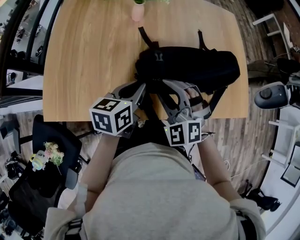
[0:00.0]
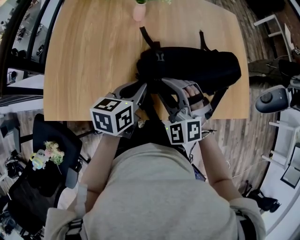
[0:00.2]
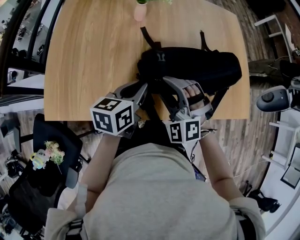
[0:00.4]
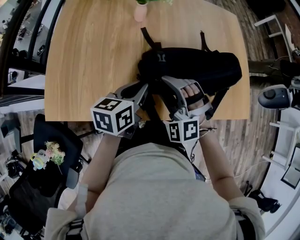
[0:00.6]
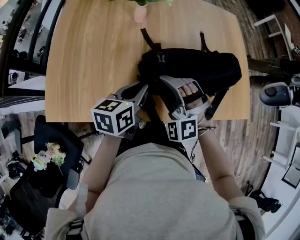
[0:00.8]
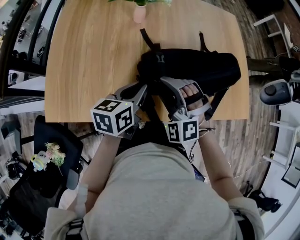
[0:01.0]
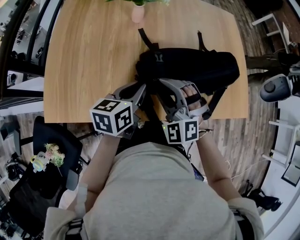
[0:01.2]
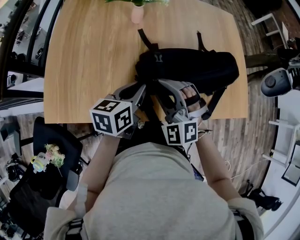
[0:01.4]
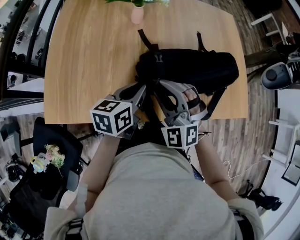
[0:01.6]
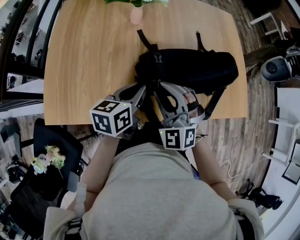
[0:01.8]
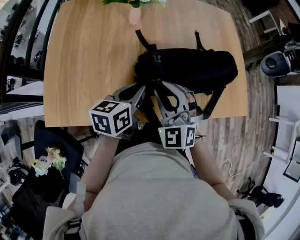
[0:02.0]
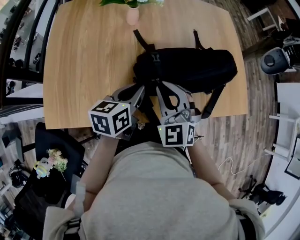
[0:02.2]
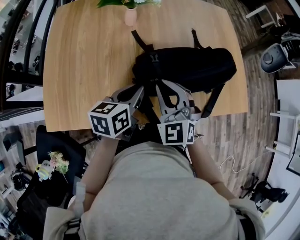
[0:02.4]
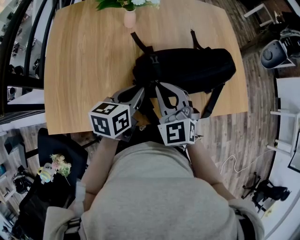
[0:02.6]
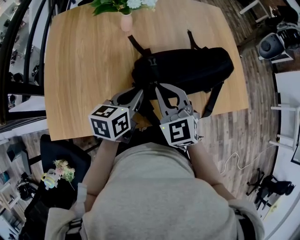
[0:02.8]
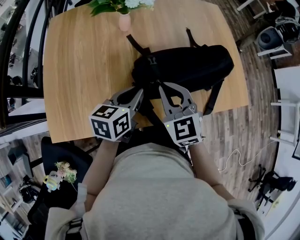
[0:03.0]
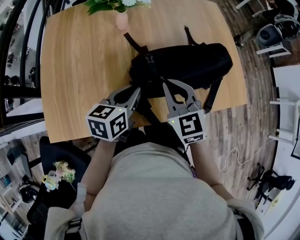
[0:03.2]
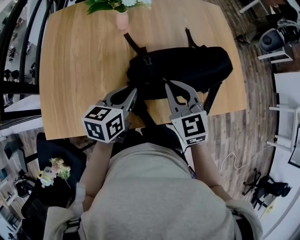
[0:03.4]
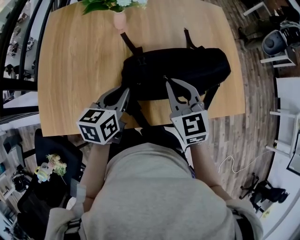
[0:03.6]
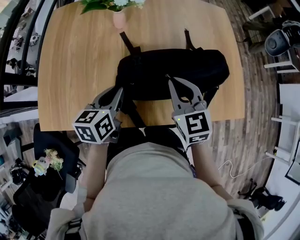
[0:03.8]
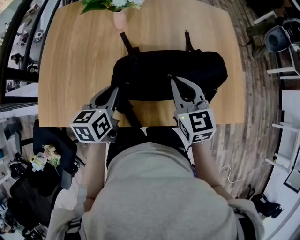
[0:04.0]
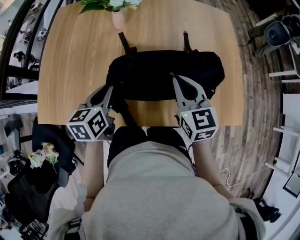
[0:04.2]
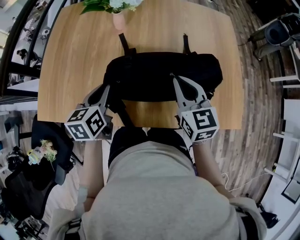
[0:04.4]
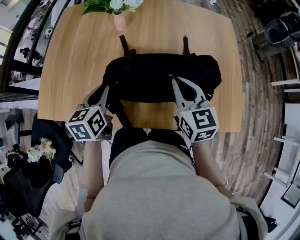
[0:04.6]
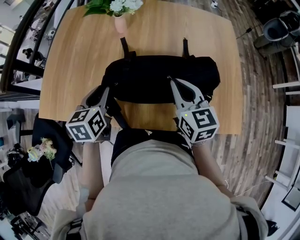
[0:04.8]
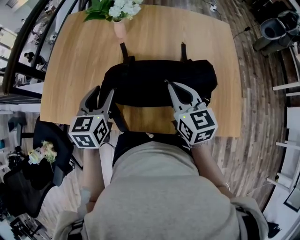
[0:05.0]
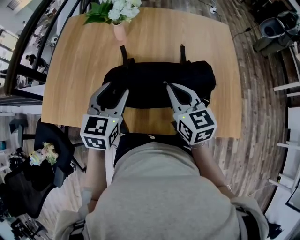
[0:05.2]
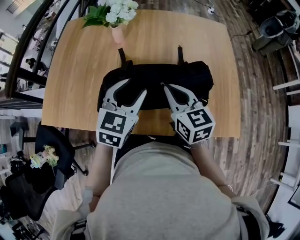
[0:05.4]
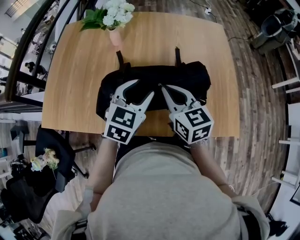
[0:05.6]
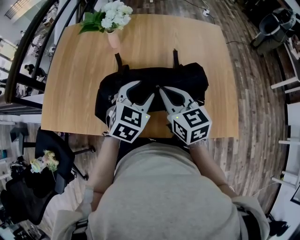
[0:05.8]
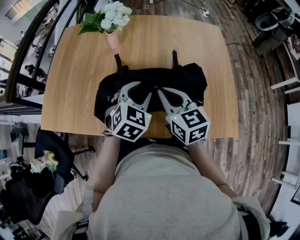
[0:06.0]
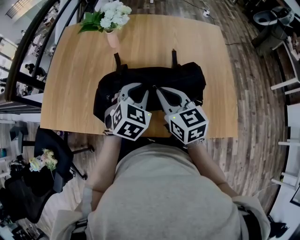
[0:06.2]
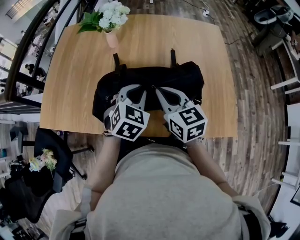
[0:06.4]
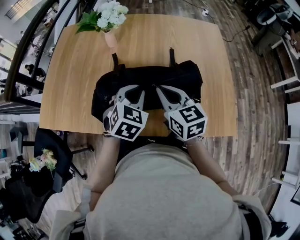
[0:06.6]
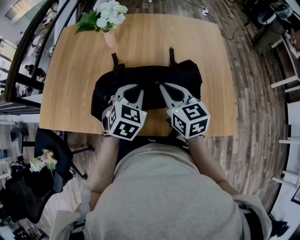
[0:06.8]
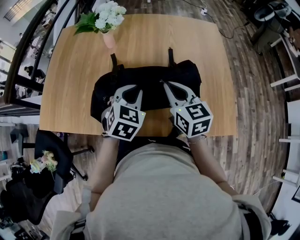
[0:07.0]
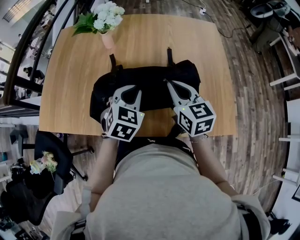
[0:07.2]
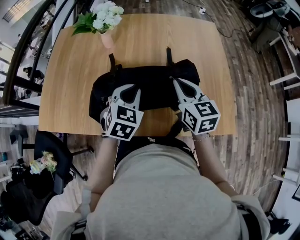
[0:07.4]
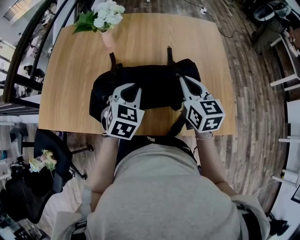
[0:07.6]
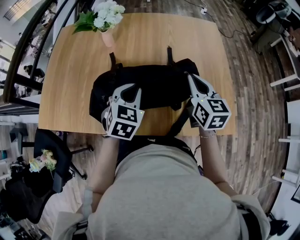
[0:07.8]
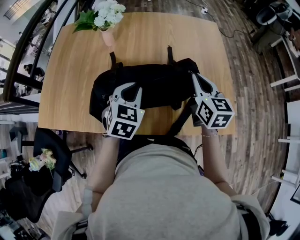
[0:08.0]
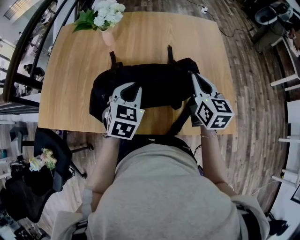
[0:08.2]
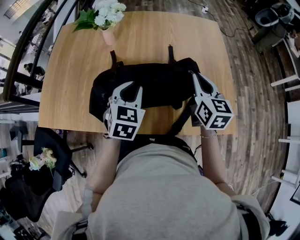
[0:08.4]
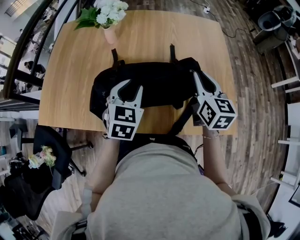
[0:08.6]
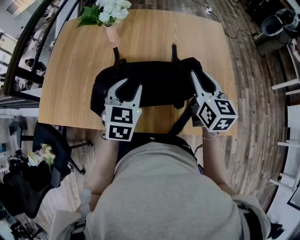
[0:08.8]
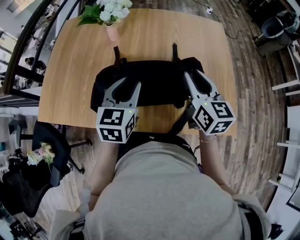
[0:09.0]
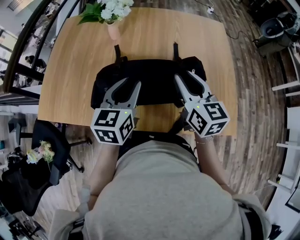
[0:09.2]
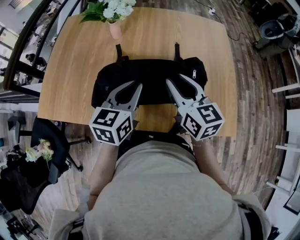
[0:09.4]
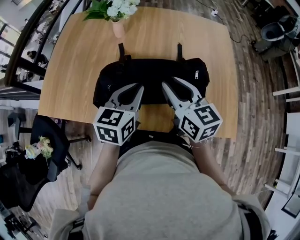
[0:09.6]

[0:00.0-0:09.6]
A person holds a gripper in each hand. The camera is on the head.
0:00.0 to 0:01.6: There are only small adjustments of the grippers.
0:01.6 to 0:03.2: The right gripper rolls clockwise, seen from behind, by approximately 40 degrees, and closes its fingers.
0:03.2 to 0:04.8: The left gripper swivels approximately 40 degrees, while the right gripper changes place by approximately 15 cm, and rotates about 20 degrees.
0:04.8 to 0:06.4: The left gripper heads to the right, covering about 20 cm, rolls clockwise, seen from behind, by about 40 degrees, and opens and closes again.
0:06.4 to 0:08.0: The right gripper goes about 15 cm to the right, and changes its angle by some 20 degrees.
0:08.0 to 0:09.6: The left gripper moves roughly 5 cm, changes its angle by about 30 degrees, and opens and closes again. The right gripper is displaced to the left by roughly 15 cm, rotates roughly 20 degrees, and opens.

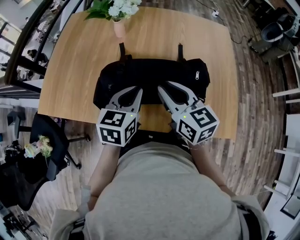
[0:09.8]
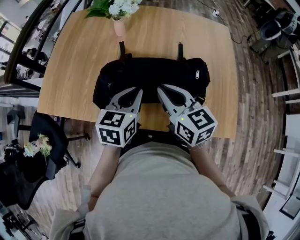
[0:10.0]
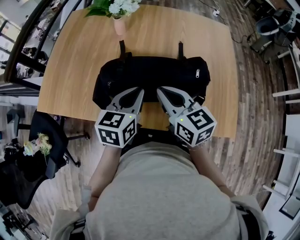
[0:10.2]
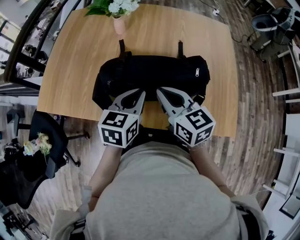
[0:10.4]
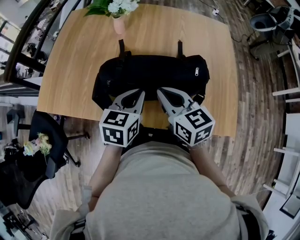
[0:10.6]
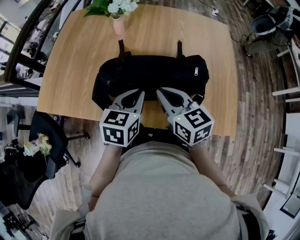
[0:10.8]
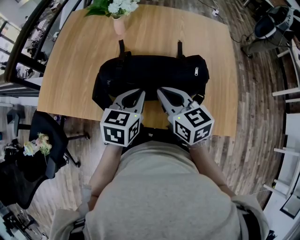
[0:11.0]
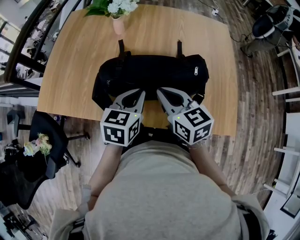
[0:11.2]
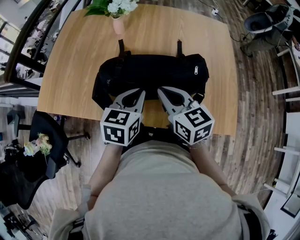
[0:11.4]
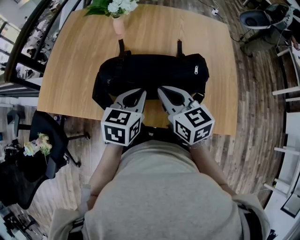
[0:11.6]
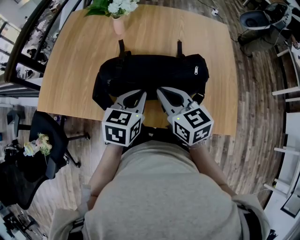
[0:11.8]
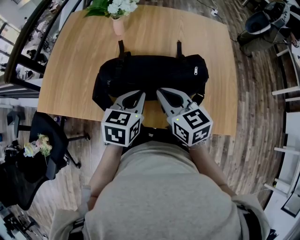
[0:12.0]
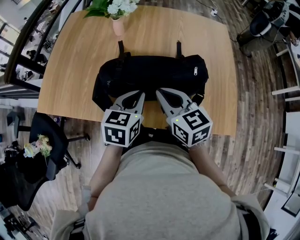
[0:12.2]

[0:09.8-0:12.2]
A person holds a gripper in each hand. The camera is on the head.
0:09.8 to 0:11.0: The right gripper closes.
0:11.0 to 0:12.2: Both grippers stay put.

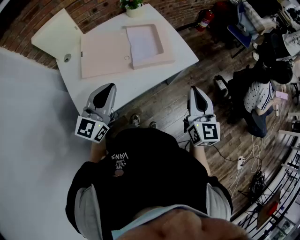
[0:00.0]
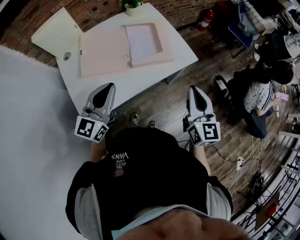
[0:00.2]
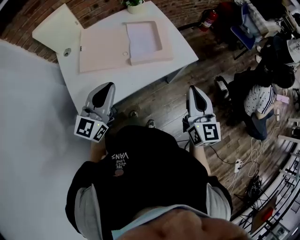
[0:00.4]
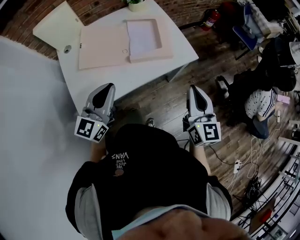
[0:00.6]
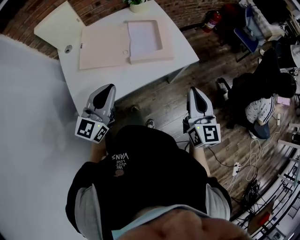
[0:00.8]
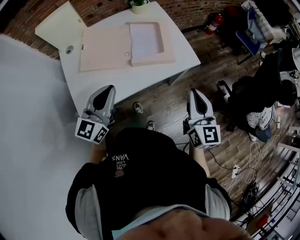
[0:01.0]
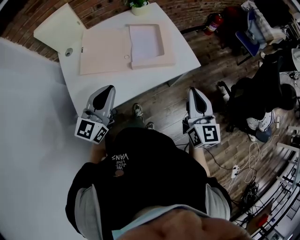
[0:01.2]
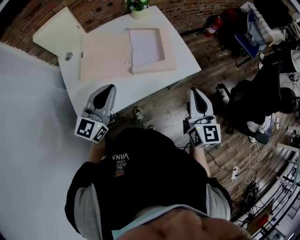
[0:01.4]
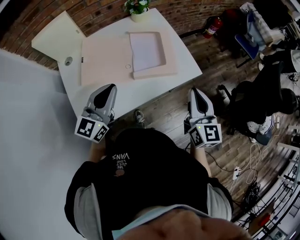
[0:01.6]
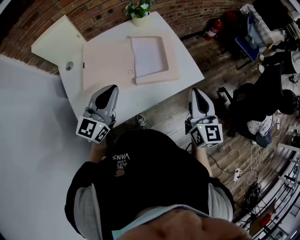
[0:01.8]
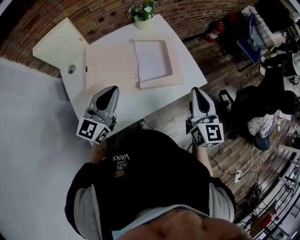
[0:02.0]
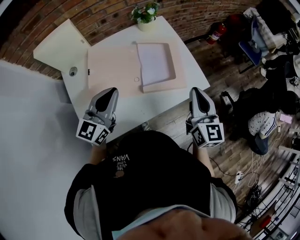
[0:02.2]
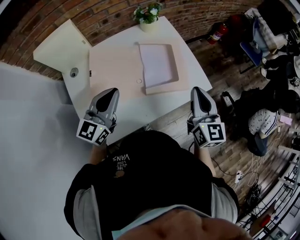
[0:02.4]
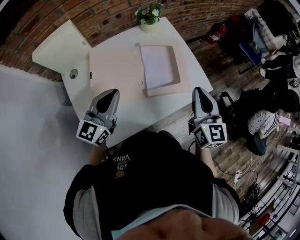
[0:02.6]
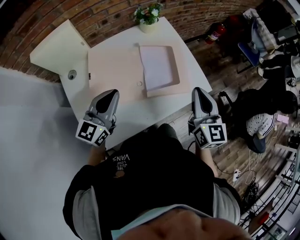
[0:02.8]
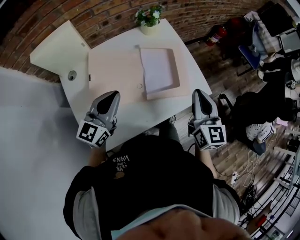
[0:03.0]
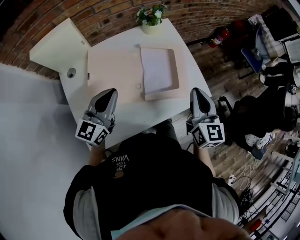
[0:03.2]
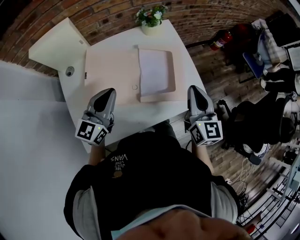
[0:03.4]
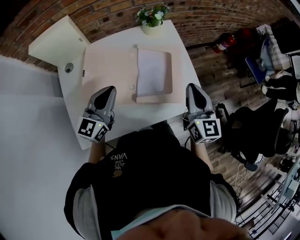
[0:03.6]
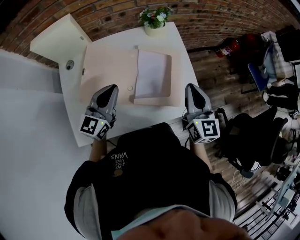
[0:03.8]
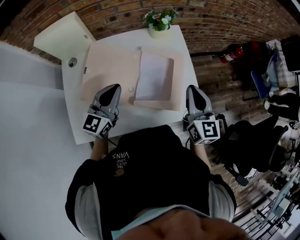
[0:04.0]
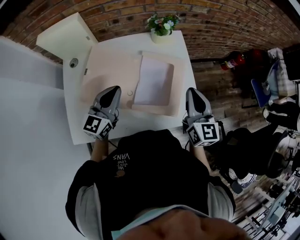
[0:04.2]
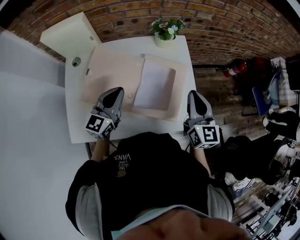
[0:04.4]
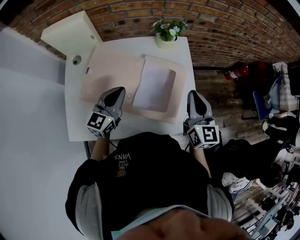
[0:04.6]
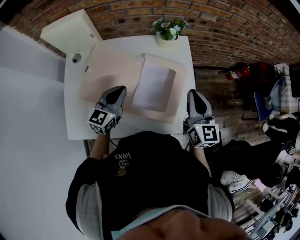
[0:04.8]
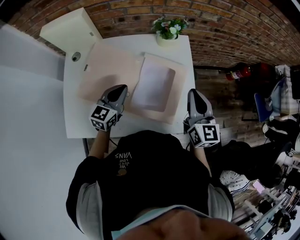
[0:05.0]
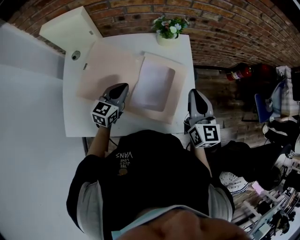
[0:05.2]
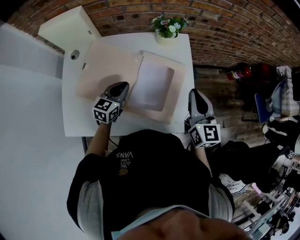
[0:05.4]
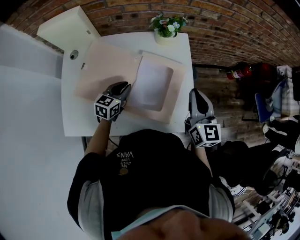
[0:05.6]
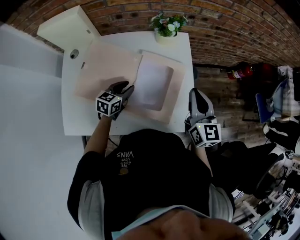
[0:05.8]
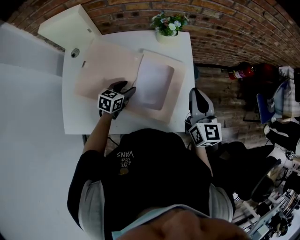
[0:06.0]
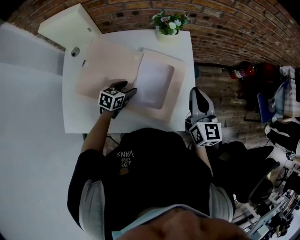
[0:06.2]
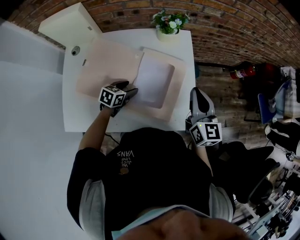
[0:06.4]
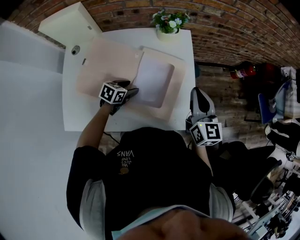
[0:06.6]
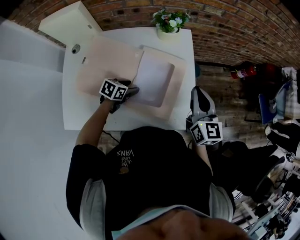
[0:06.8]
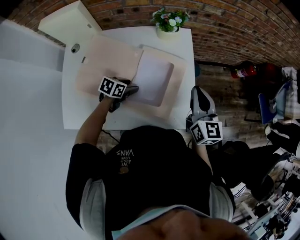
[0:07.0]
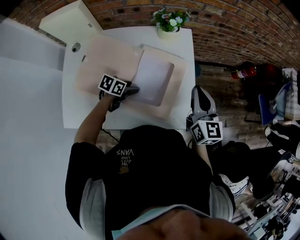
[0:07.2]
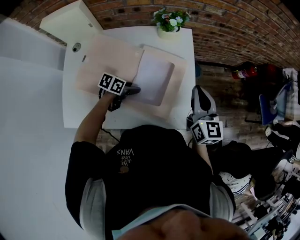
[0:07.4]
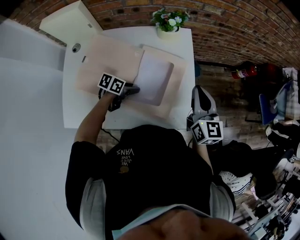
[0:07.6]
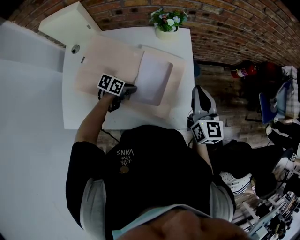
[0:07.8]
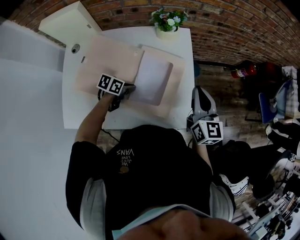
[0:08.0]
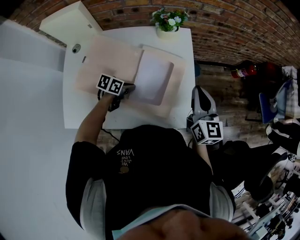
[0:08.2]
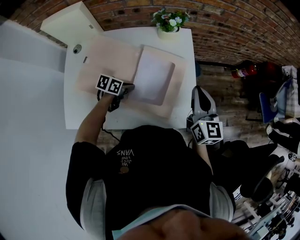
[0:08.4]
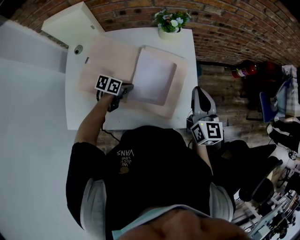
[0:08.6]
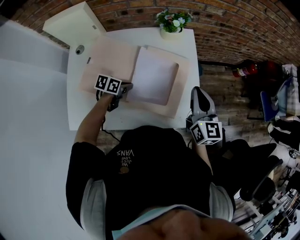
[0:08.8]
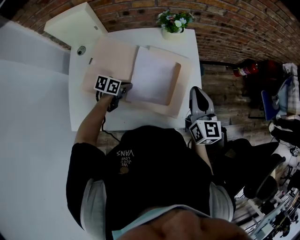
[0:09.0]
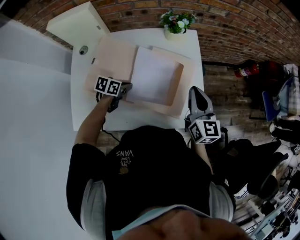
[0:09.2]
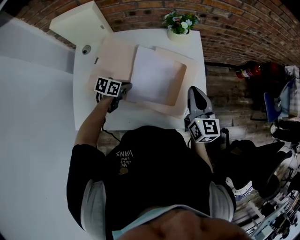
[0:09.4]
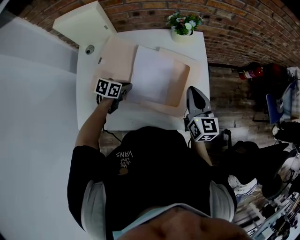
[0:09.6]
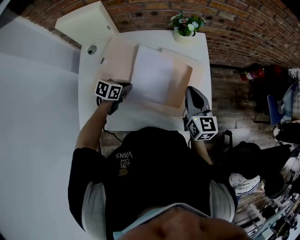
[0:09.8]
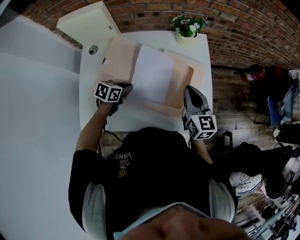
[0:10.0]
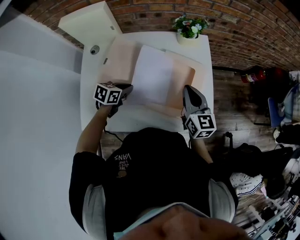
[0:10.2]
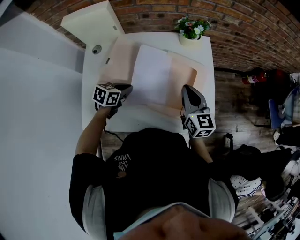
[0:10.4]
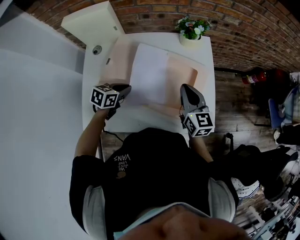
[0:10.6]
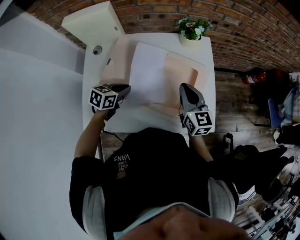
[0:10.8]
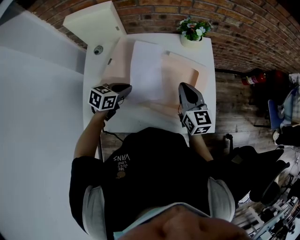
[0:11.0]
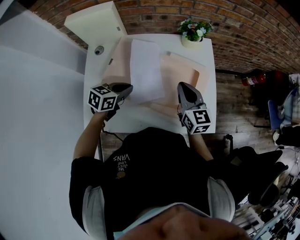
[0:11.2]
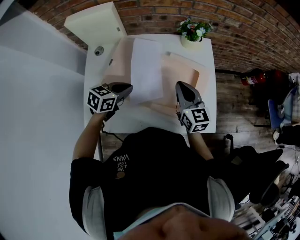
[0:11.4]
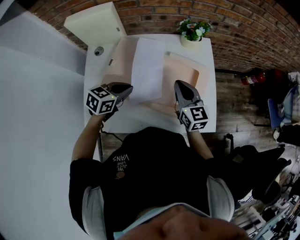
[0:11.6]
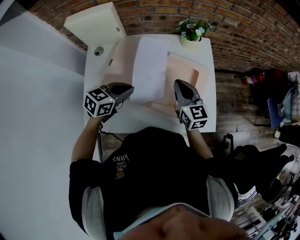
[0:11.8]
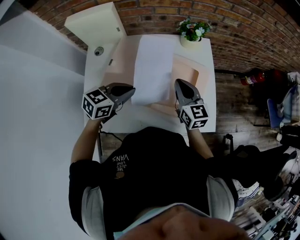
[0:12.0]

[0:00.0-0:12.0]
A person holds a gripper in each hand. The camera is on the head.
0:00.0 to 0:01.6: The grippers both shift forward by about 5 cm.
0:01.6 to 0:03.0: The two grippers go roughly 10 cm forward and to the left.
0:03.0 to 0:04.4: The left gripper is displaced forward and to the right by some 10 cm, and turns by some 20 degrees, while the right gripper goes approximately 15 cm forward, and swivels roughly 20 degrees.
0:04.4 to 0:06.0: The left gripper goes some 20 cm downward, tilts its fingers about 30 degrees downward, and opens its fingers. The right gripper ends up some 5 cm from where it was.
0:06.0 to 0:07.6: The left gripper moves roughly 5 cm, and turns by roughly 30 degrees.
0:07.6 to 0:09.0: The left gripper shifts approximately 5 cm to the left, and closes.
0:09.0 to 0:10.4: The left gripper moves to the left and upward, roughly 10 cm, while the right gripper goes about 10 cm to the left.
0:10.4 to 0:12.0: The left gripper heads upward, covering some 10 cm, and swivels roughly 20 degrees. Meanwhile the right gripper is displaced to the left by some 5 cm.
